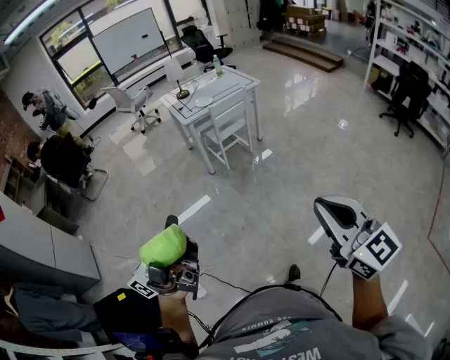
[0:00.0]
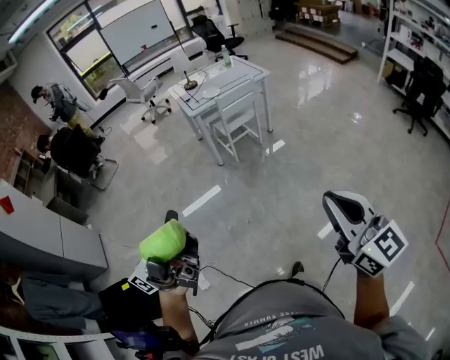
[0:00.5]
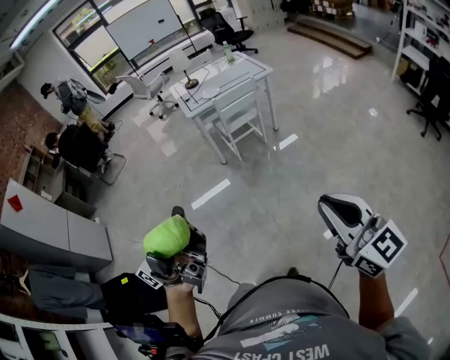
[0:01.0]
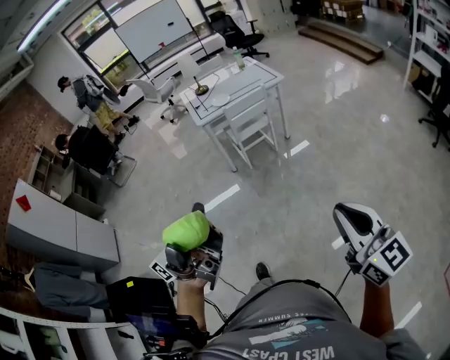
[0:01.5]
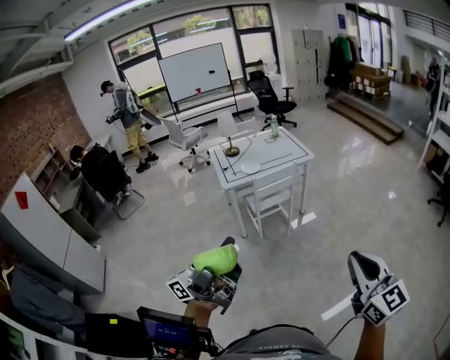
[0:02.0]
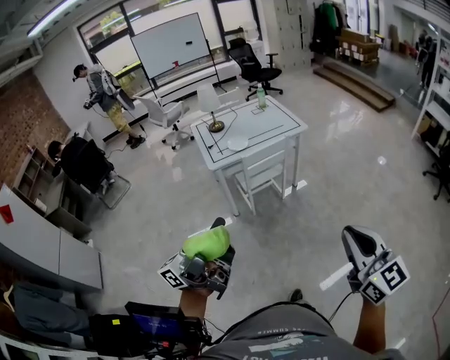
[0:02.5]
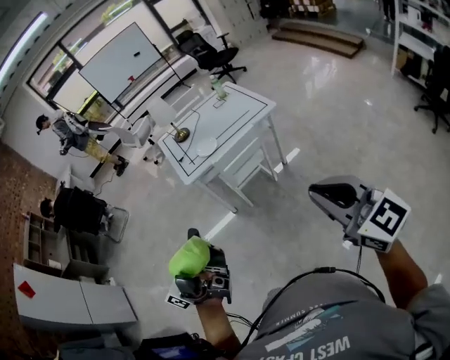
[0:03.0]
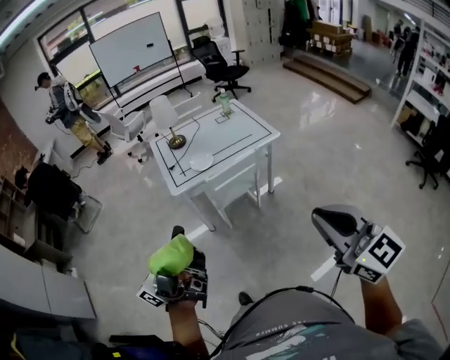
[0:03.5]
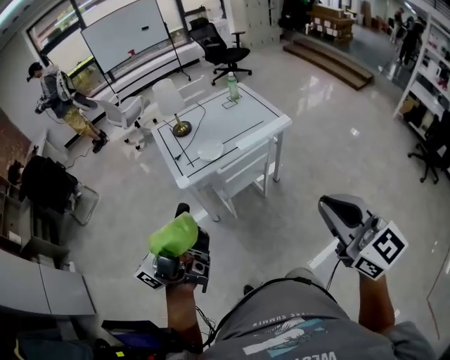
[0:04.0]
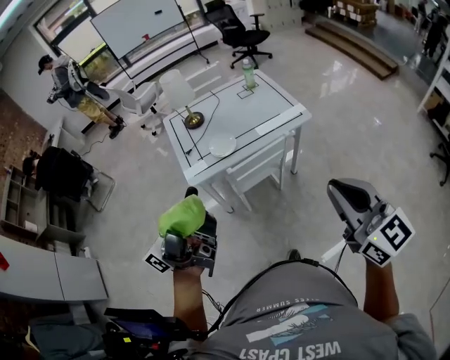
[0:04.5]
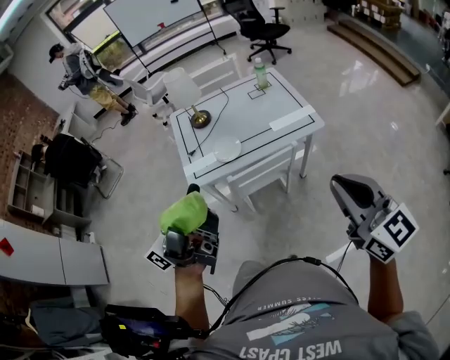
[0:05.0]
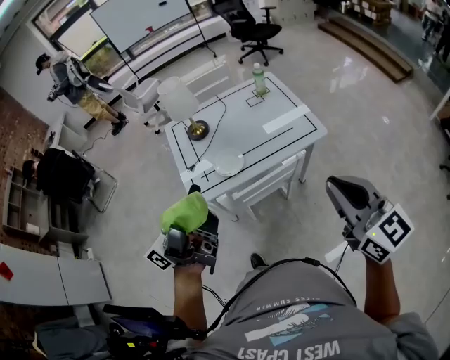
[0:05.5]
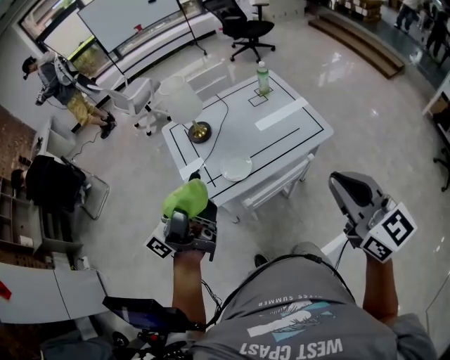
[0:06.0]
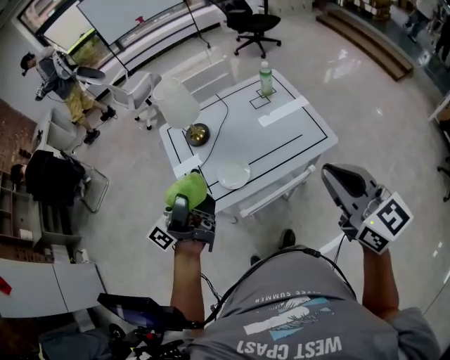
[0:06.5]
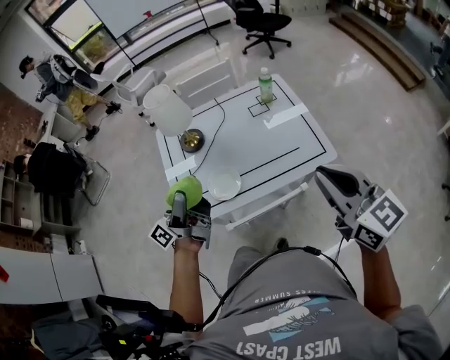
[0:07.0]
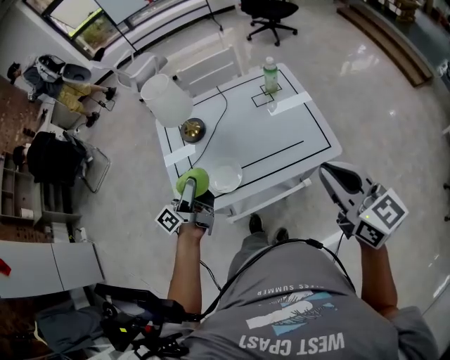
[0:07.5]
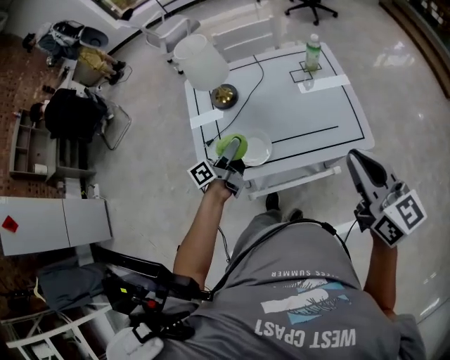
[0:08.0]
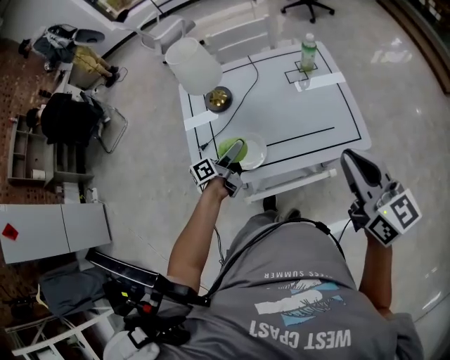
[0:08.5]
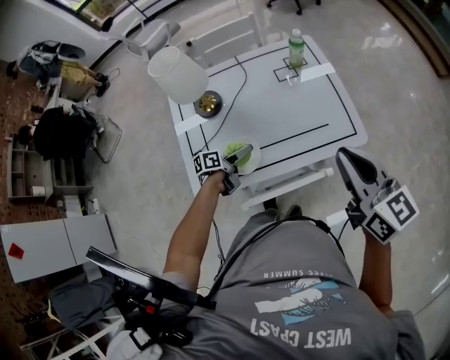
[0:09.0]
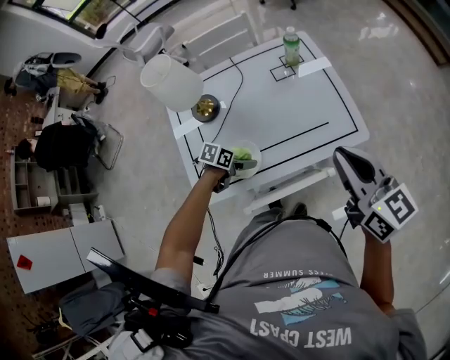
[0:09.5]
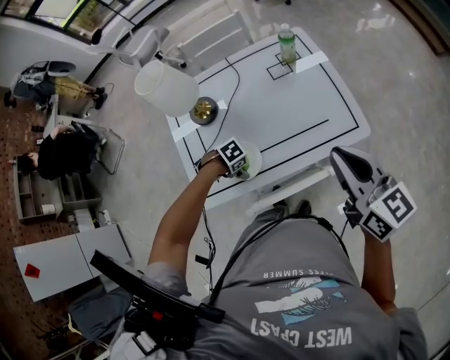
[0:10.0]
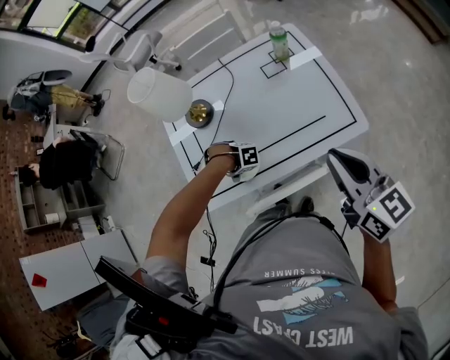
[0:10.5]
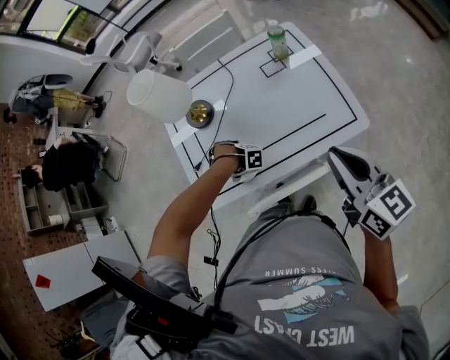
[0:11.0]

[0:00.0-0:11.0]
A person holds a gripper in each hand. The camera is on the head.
0:00.0 to 0:02.0: The two grippers go approximately 30 cm forward.
0:02.0 to 0:03.5: The two grippers go roughly 30 cm forward.
0:03.5 to 0:05.5: The grippers both shift forward by roughly 35 cm.
0:05.5 to 0:07.5: The left gripper travels forward and downward by approximately 35 cm, and changes its angle by some 30 degrees. The right gripper is displaced forward by some 20 cm.
0:07.5 to 0:09.0: The left gripper heads downward, covering some 25 cm, and tilts its fingers some 40 degrees downward, while the right gripper travels forward by some 5 cm.
0:09.0 to 0:11.0: The left gripper goes about 10 cm downward, and points its fingers some 30 degrees further downward.

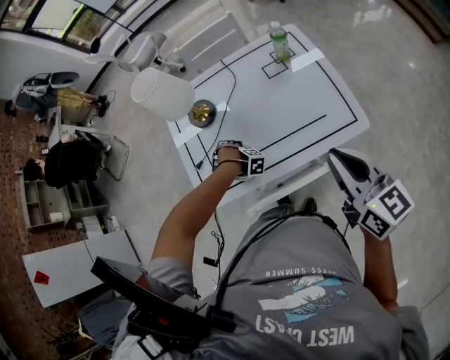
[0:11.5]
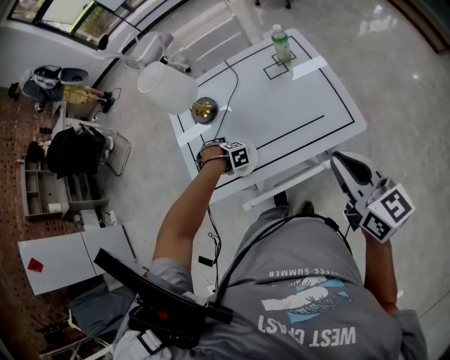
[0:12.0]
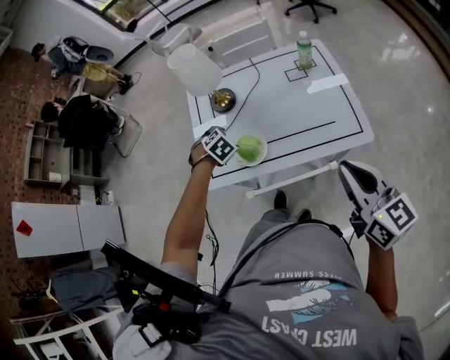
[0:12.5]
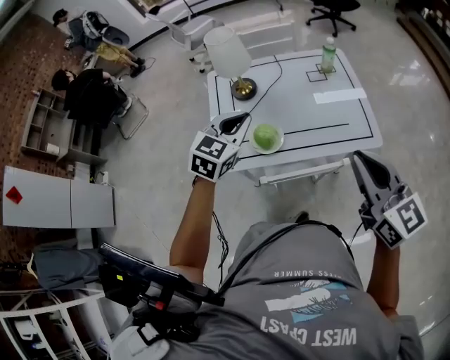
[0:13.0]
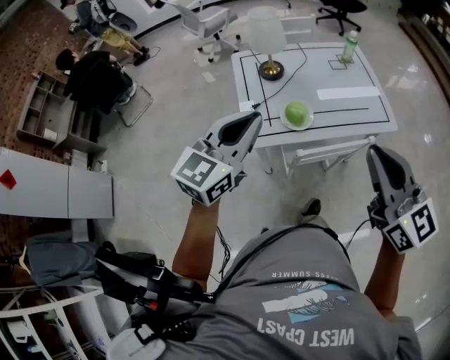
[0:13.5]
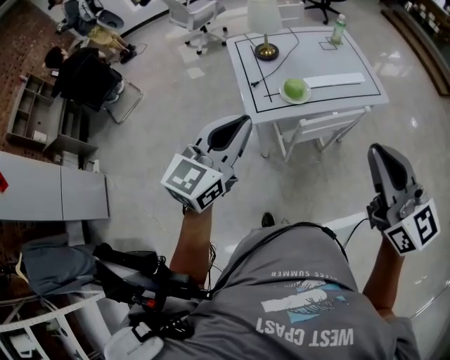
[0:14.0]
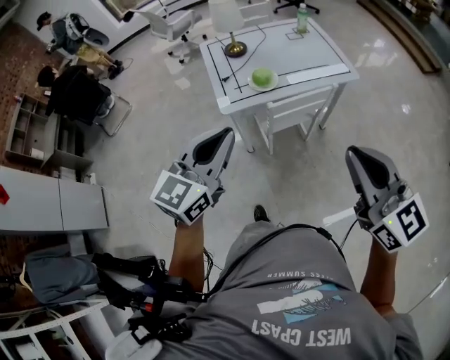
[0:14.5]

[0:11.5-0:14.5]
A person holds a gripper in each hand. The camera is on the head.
0:11.5 to 0:13.0: The left gripper heads upward, covering approximately 35 cm, angles its fingers upward, by about 40 degrees, and closes its fingers; the right gripper shifts by about 15 cm.
0:13.0 to 0:14.5: The two grippers go roughly 35 cm backward. The left gripper turns by about 20 degrees.

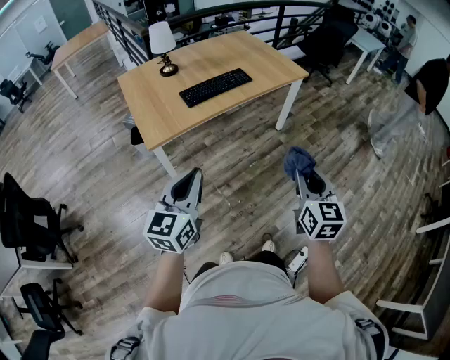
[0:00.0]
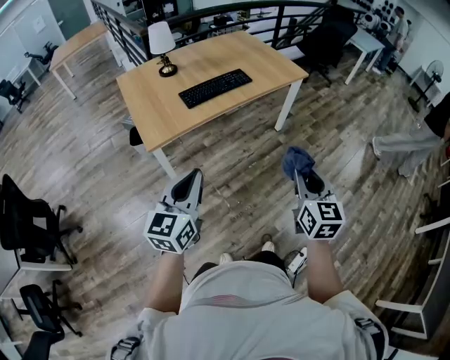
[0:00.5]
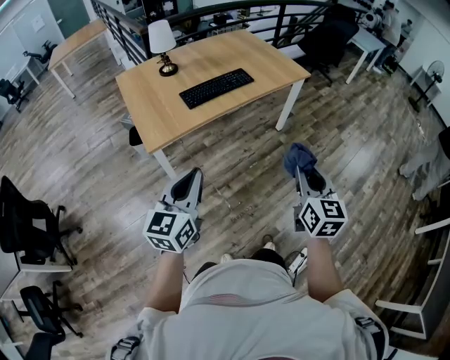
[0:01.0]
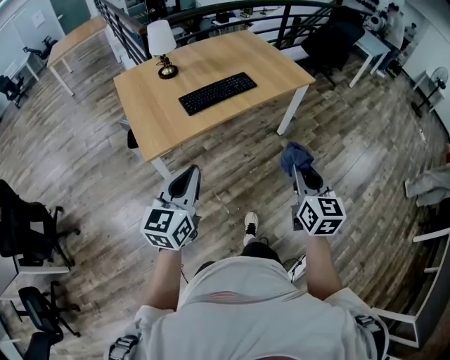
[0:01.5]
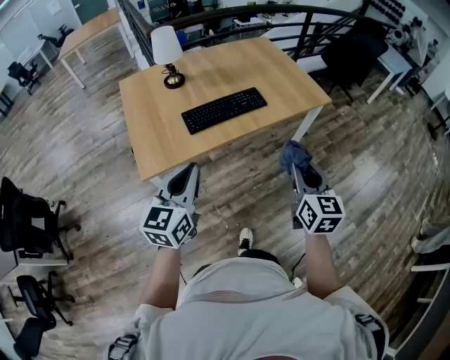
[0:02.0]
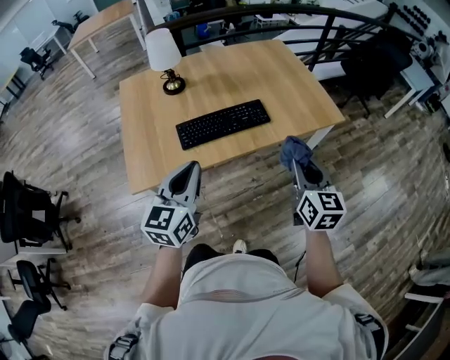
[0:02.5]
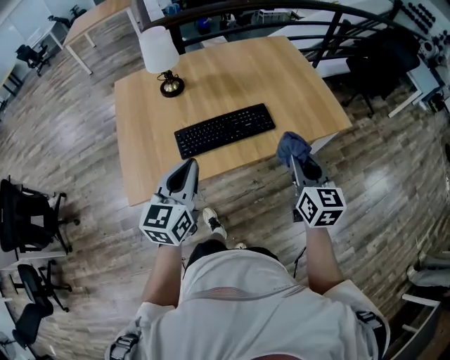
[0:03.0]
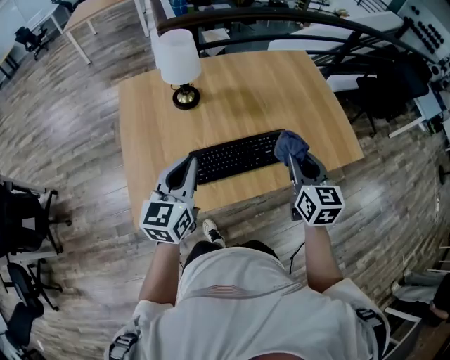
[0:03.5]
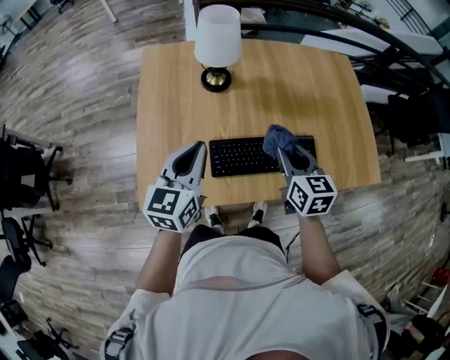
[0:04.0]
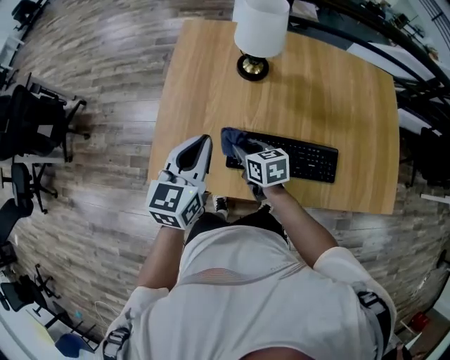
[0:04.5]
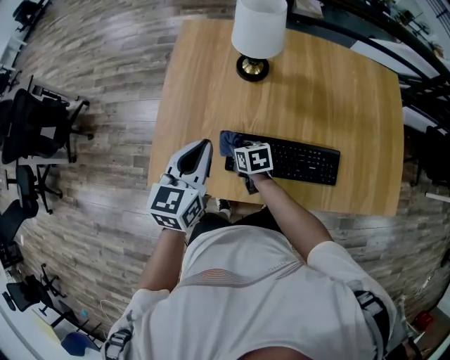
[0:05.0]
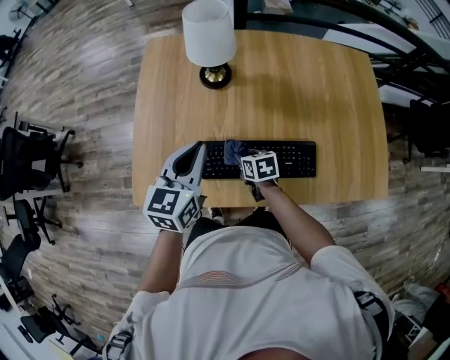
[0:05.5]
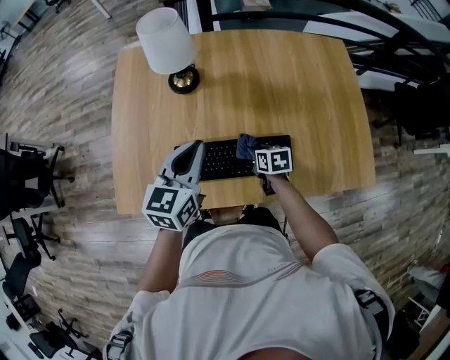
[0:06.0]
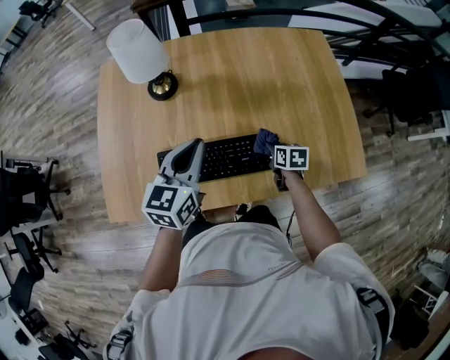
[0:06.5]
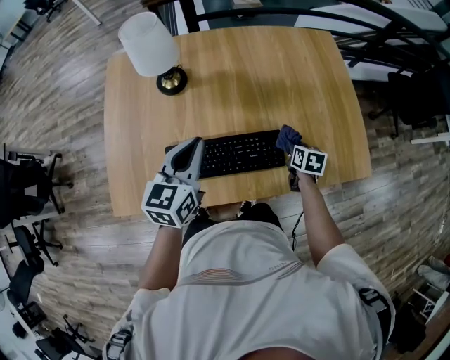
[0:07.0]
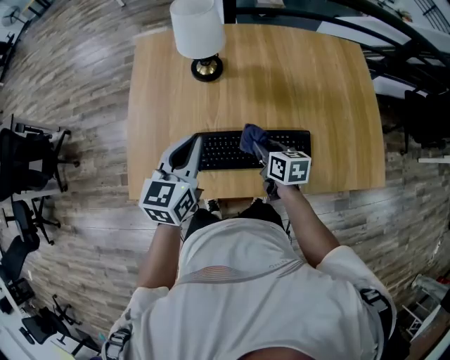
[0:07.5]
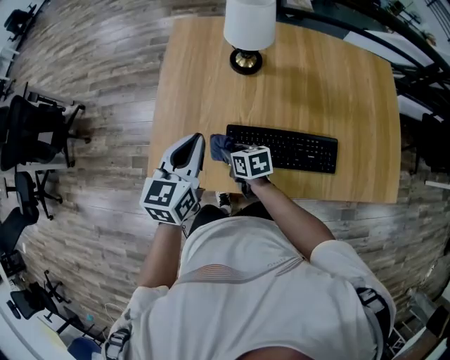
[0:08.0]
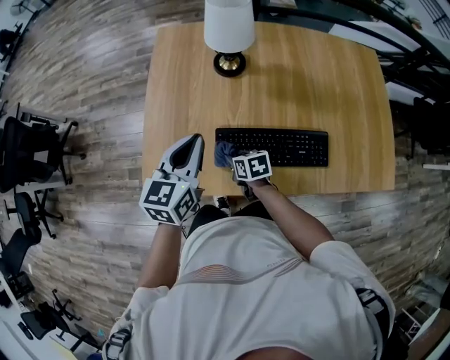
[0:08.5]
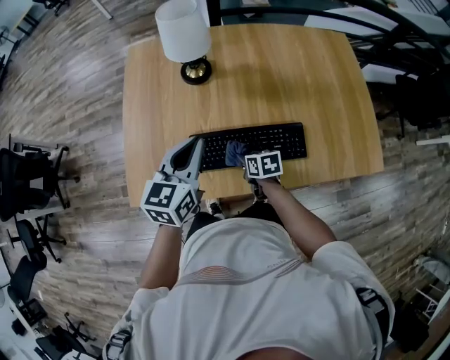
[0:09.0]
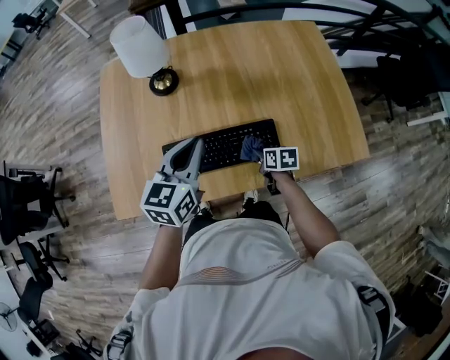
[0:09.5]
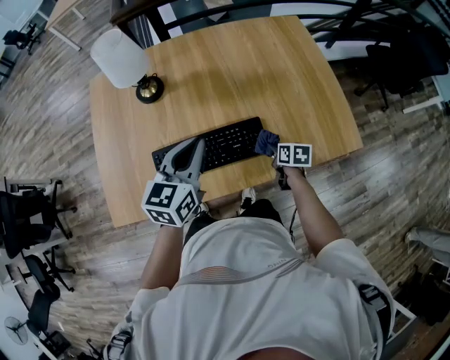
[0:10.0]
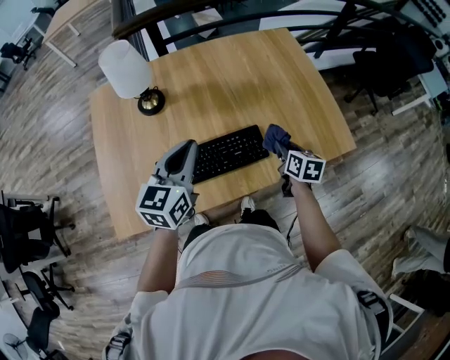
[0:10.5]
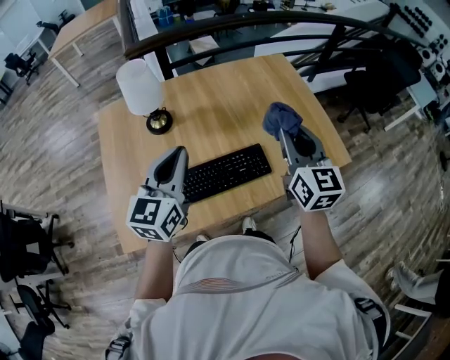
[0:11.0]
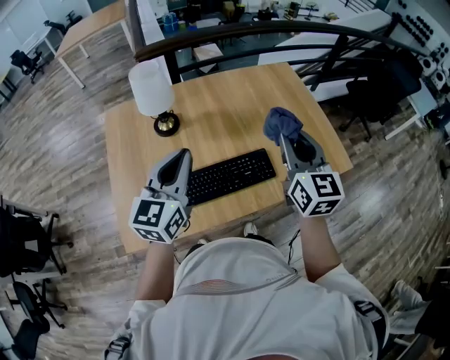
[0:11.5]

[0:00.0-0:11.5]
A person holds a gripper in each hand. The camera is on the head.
0:00.0 to 0:02.0: Both grippers travel together forward, approximately 25 cm.
0:02.0 to 0:04.0: Both grippers move forward, some 40 cm. The right gripper changes its angle by about 30 degrees.
0:04.0 to 0:06.0: The left gripper ends up roughly 15 cm from where it was. Meanwhile the right gripper heads downward, covering roughly 20 cm, and swivels some 30 degrees.
0:06.0 to 0:07.5: The right gripper shifts approximately 10 cm upward, and moves about 20 cm to the right and comes back. Meanwhile the left gripper travels to the left by about 5 cm.
0:07.5 to 0:09.5: The right gripper is displaced downward and backward by approximately 10 cm, and travels to the left and back again, about 20 cm each way; the left gripper shifts approximately 10 cm to the right.
0:09.5 to 0:11.5: The left gripper shifts about 10 cm upward, while the right gripper moves upward, approximately 40 cm, and angles its fingers upward, by some 50 degrees.

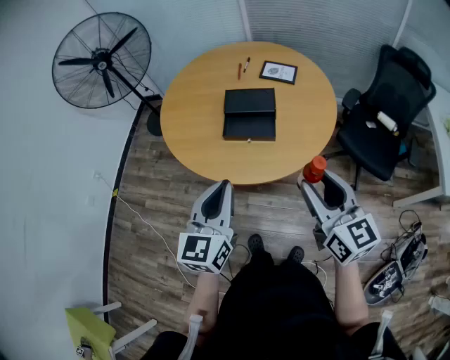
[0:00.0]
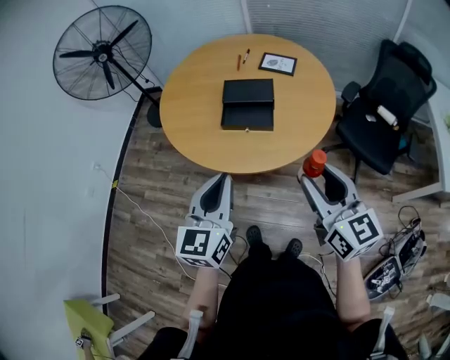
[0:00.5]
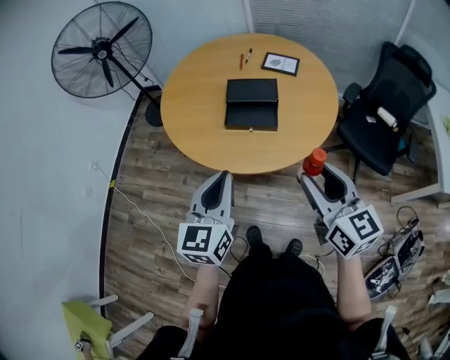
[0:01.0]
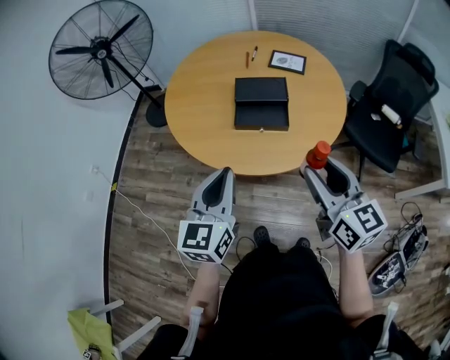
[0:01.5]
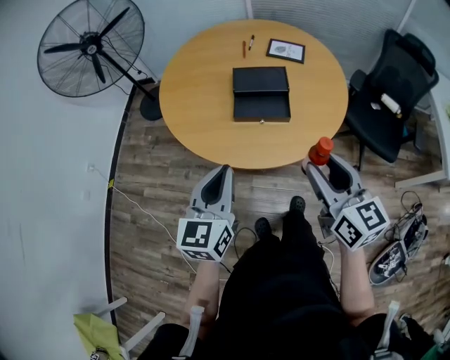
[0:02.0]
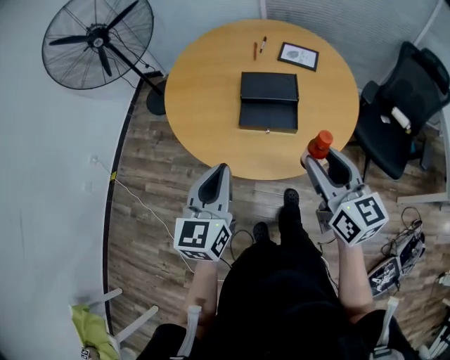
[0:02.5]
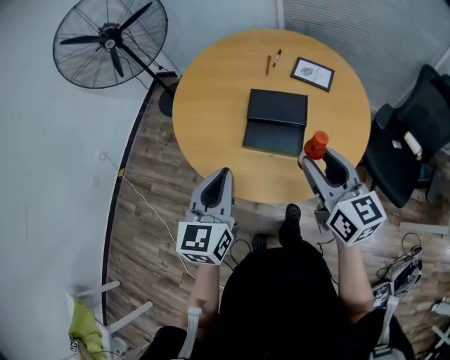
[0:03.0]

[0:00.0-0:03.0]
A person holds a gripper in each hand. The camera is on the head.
0:00.0 to 0:01.5: Both grippers move to the left, roughly 5 cm.
0:01.5 to 0:03.0: The two grippers go roughly 15 cm forward.
